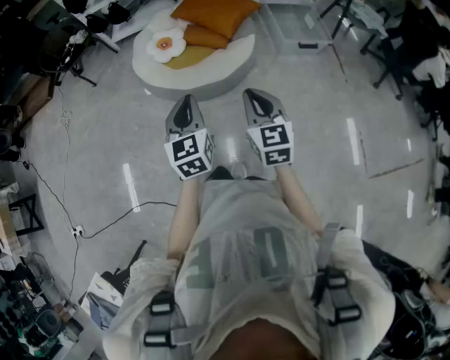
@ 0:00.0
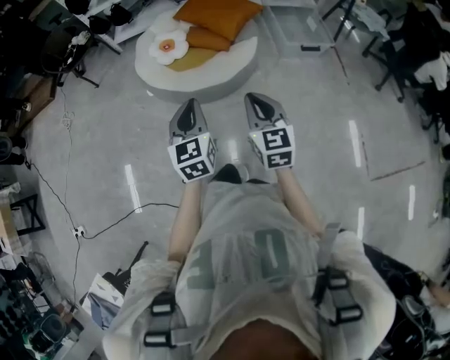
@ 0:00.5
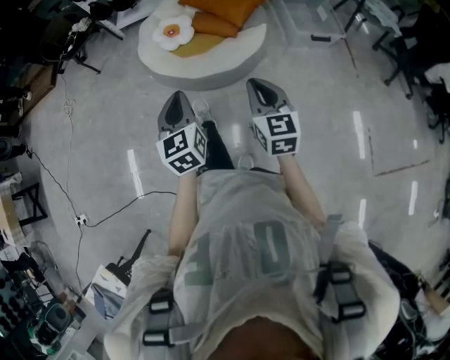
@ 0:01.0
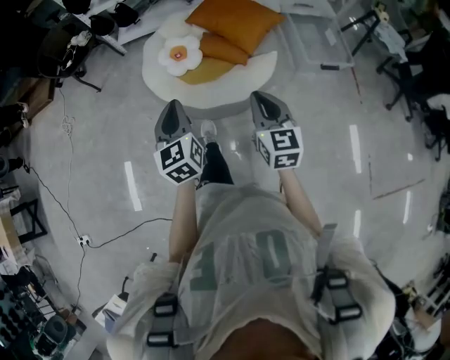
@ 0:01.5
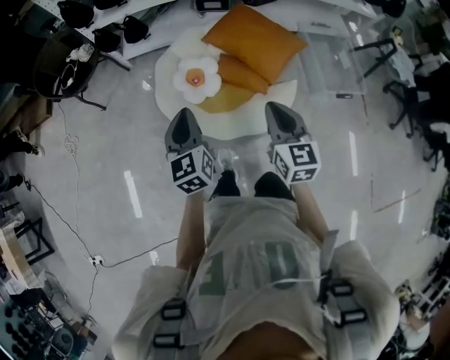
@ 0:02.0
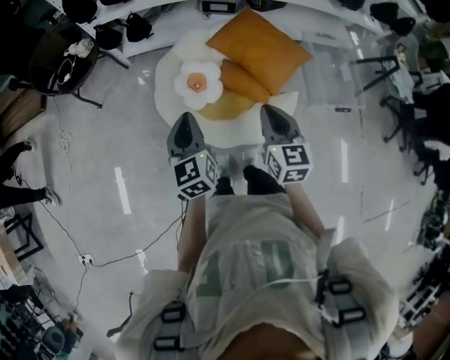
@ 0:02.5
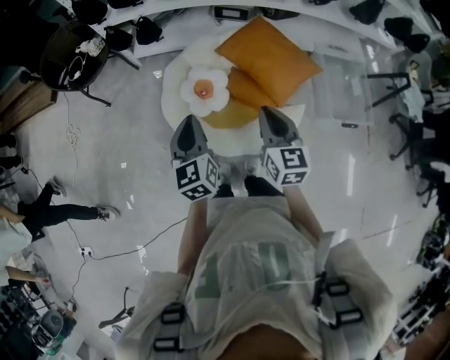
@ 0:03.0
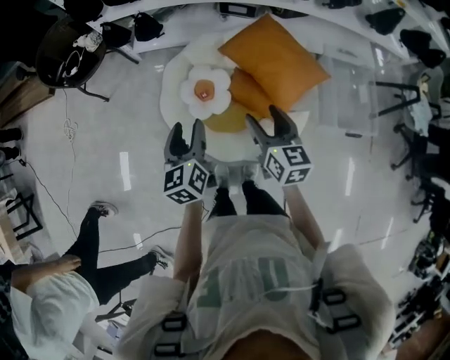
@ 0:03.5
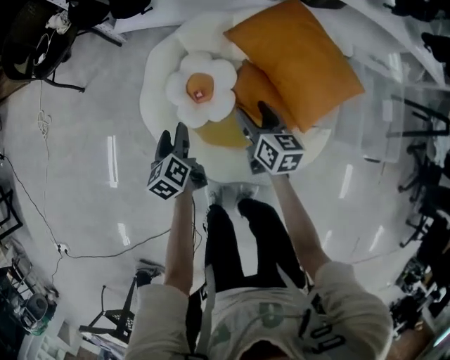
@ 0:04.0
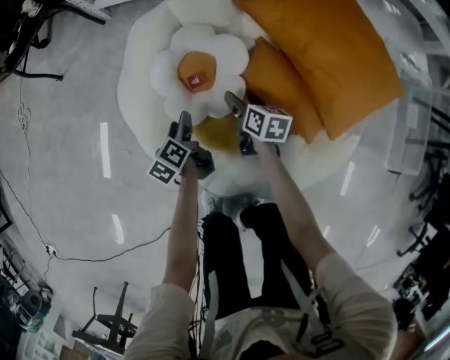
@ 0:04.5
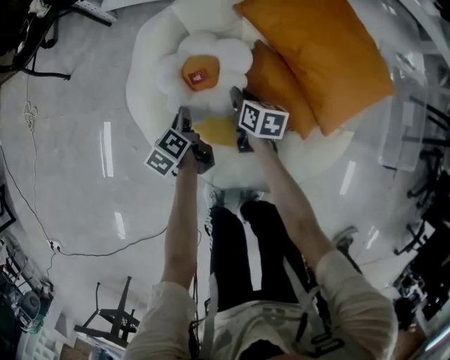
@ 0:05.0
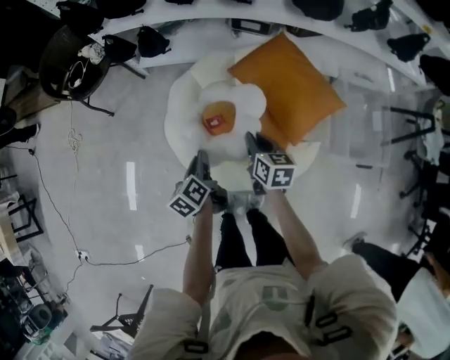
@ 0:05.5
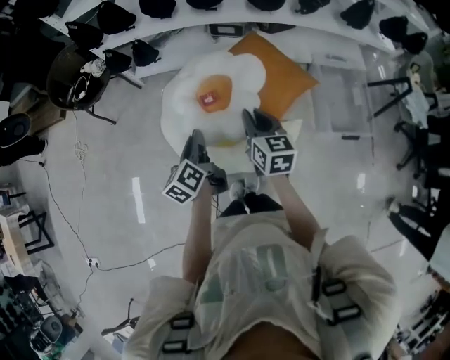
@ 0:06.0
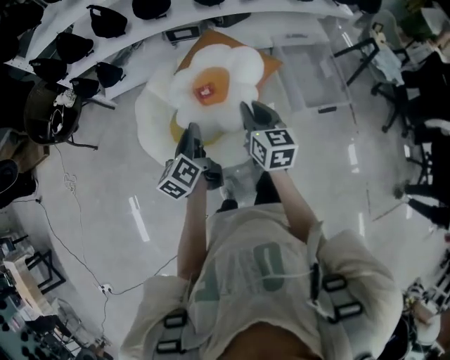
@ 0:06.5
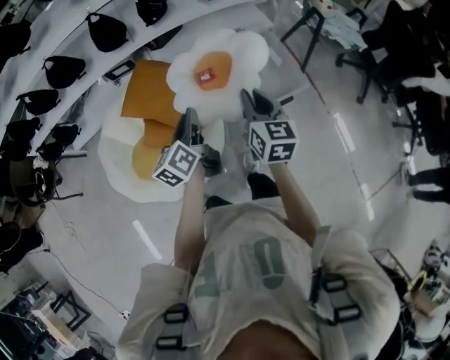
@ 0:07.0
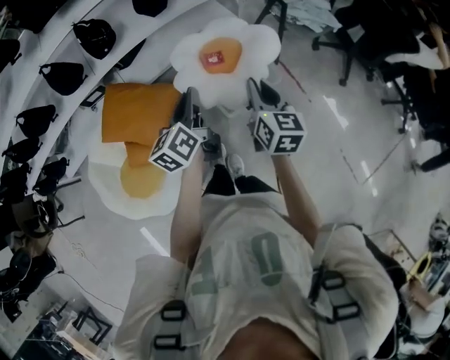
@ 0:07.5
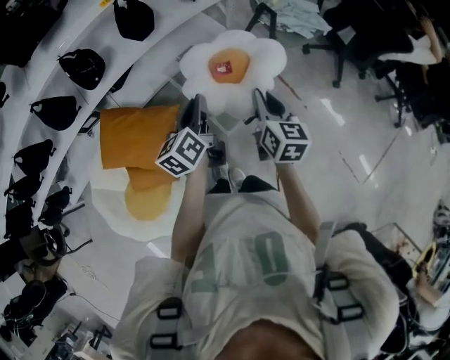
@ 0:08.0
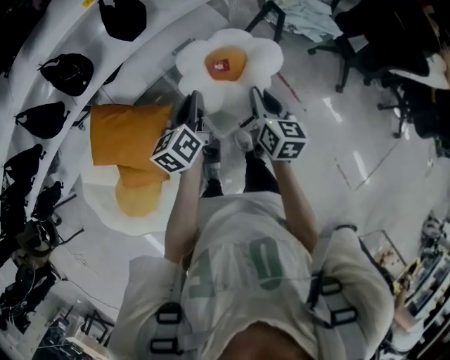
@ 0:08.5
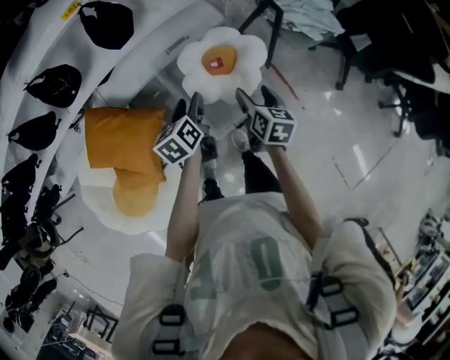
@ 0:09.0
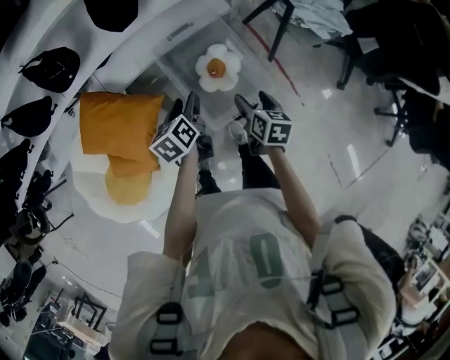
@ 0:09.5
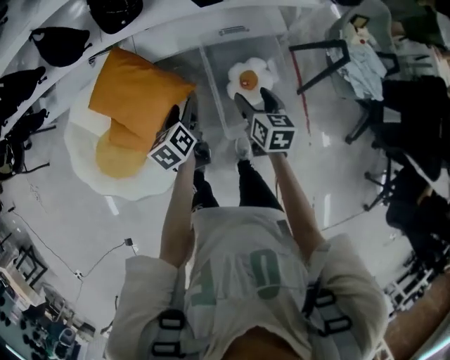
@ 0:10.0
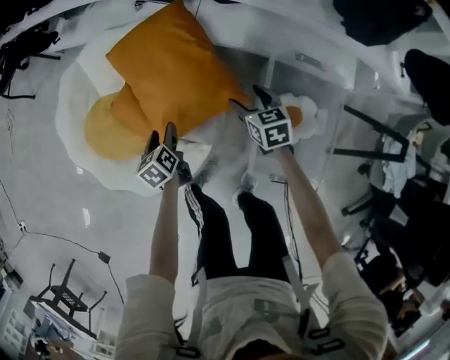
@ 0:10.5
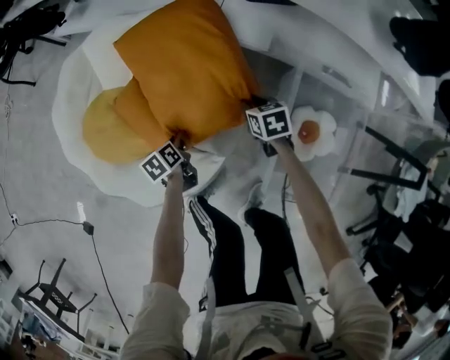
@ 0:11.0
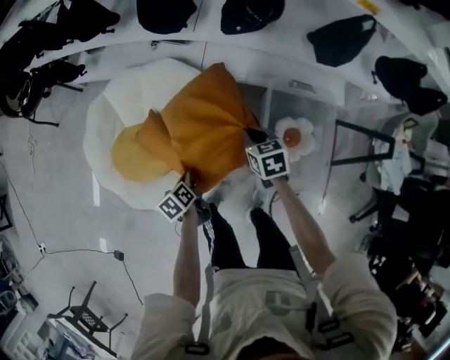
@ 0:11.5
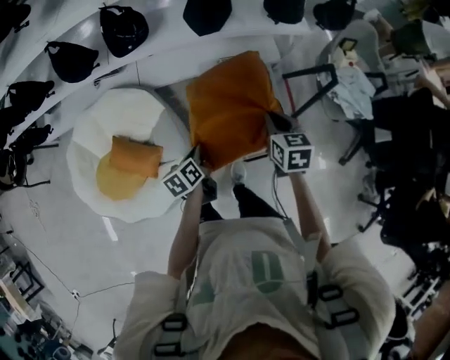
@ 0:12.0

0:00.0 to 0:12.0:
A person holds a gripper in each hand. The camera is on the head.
0:00.0 to 0:02.0: The two grippers travel together, forward, about 40 cm.
0:02.0 to 0:04.0: The grippers both shift downward and forward by about 50 cm. The right gripper swivels some 30 degrees, and opens. Meanwhile the left gripper changes its angle by some 40 degrees, and opens up.
0:04.0 to 0:06.0: The right gripper is displaced upward and backward by some 35 cm, and closes its fingers. Meanwhile the left gripper moves upward, roughly 35 cm, and closes.
0:06.0 to 0:08.0: The two grippers travel together, approximately 70 cm. The left gripper changes its angle by about 50 degrees; the right gripper changes its angle by some 50 degrees.
0:08.0 to 0:10.0: The right gripper shifts by approximately 25 cm, swivels roughly 40 degrees, and opens up. The left gripper is displaced downward by about 15 cm, rotates about 40 degrees, and opens its fingers.
0:10.0 to 0:12.0: The left gripper goes downward and returns, roughly 40 cm each way, and closes, while the right gripper moves some 35 cm downward and comes back, and closes up.

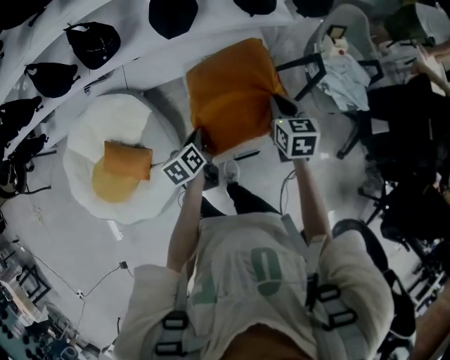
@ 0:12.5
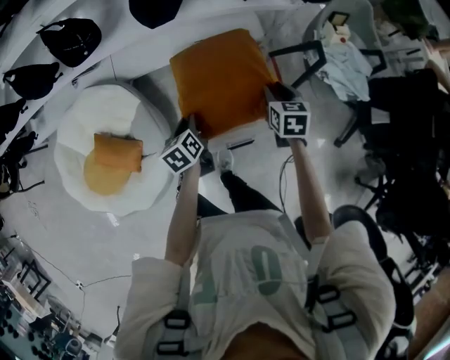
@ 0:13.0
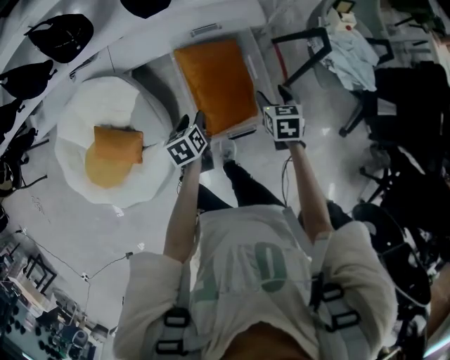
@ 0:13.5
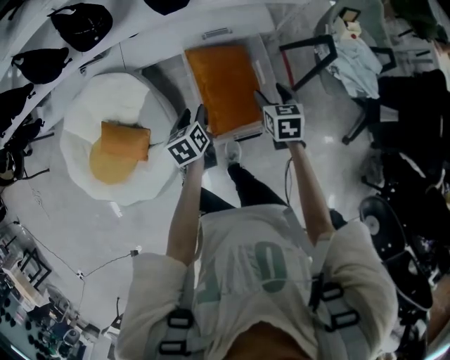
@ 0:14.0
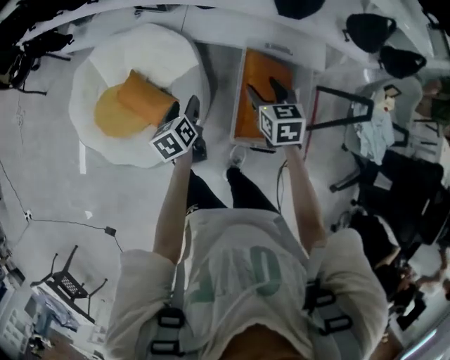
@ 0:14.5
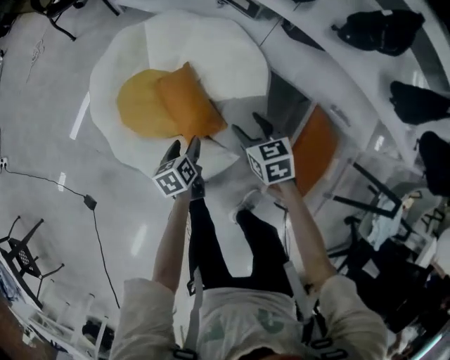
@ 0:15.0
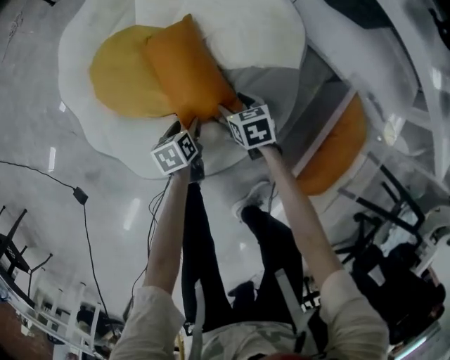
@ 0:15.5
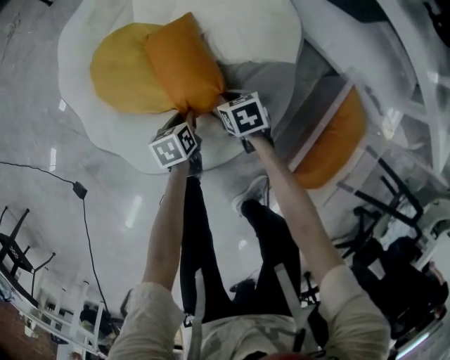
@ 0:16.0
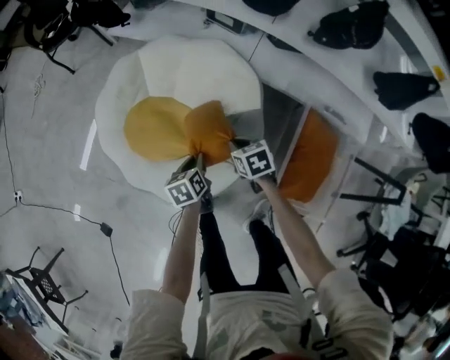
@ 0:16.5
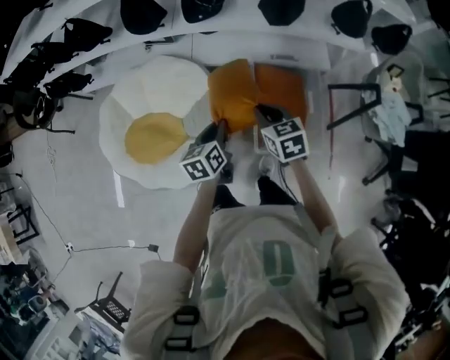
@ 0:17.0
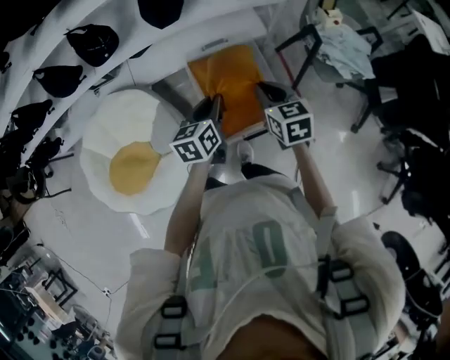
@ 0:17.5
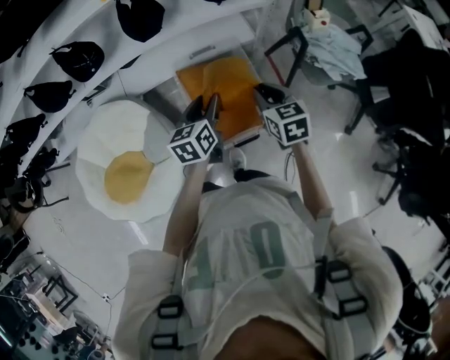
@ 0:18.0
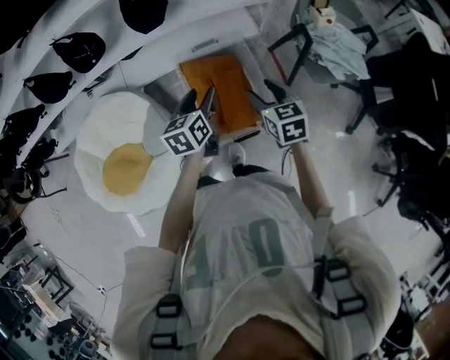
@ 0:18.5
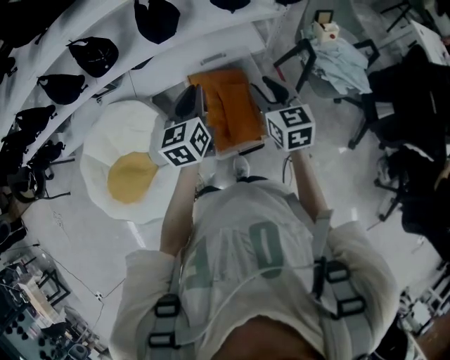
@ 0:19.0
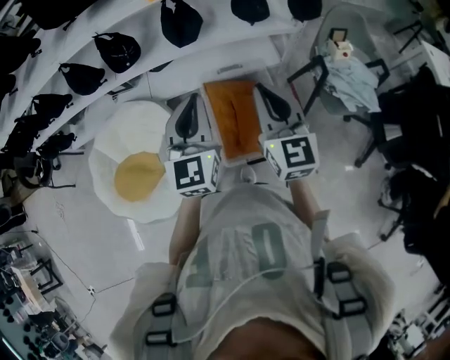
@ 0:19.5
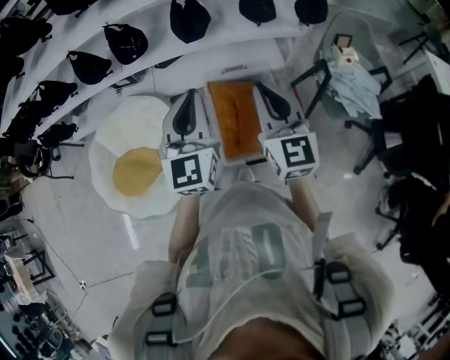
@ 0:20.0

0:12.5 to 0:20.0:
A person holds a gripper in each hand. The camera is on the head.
0:12.5 to 0:14.5: The right gripper ends up about 30 cm from where it was, swivels some 30 degrees, and opens up. Meanwhile the left gripper reaches roughly 10 cm downward, then returns, rotates some 30 degrees, and opens its fingers.
0:14.5 to 0:16.5: The right gripper turns by about 30 degrees, and closes its fingers, while the left gripper closes.
0:16.5 to 0:18.0: The pair of grippers is taken roughly 60 cm. The right gripper swivels roughly 50 degrees; the left gripper rotates approximately 60 degrees.
0:18.0 to 0:20.0: The left gripper goes about 20 cm upward, rotates some 50 degrees, and closes its fingers; the right gripper is displaced upward and to the left by roughly 25 cm, points its fingers about 40 degrees further upward, and opens and closes again.

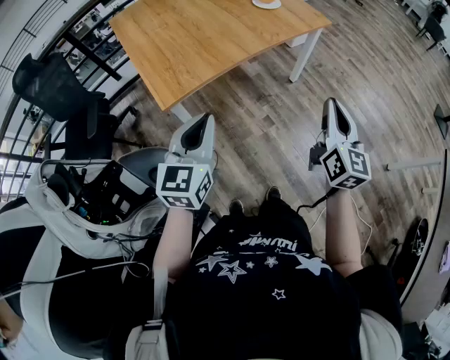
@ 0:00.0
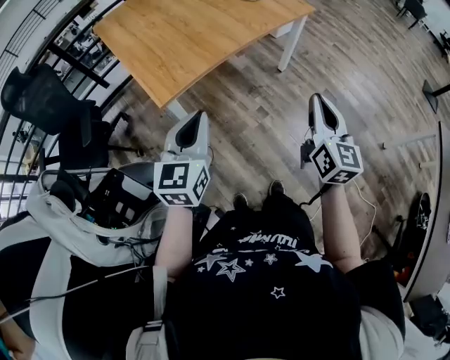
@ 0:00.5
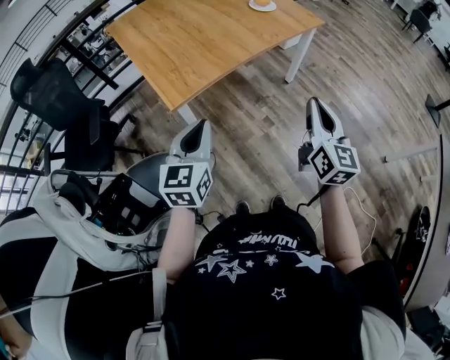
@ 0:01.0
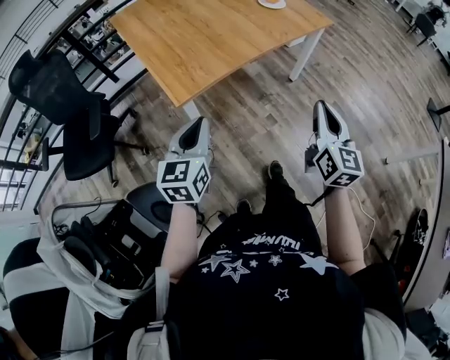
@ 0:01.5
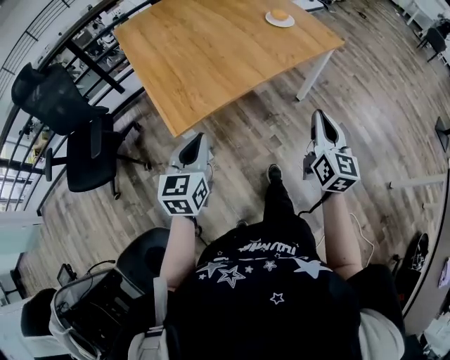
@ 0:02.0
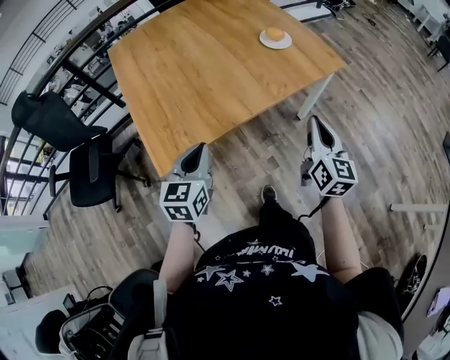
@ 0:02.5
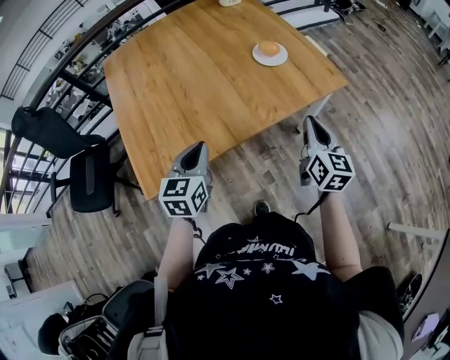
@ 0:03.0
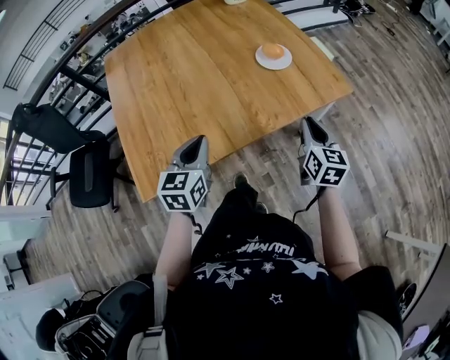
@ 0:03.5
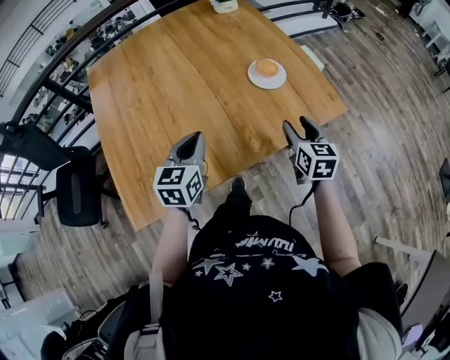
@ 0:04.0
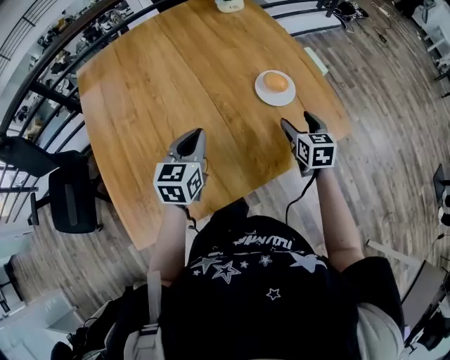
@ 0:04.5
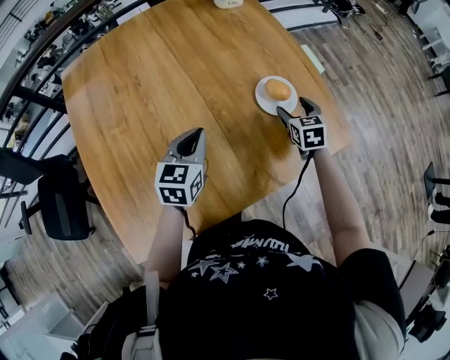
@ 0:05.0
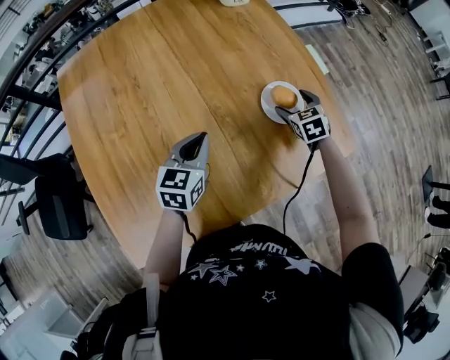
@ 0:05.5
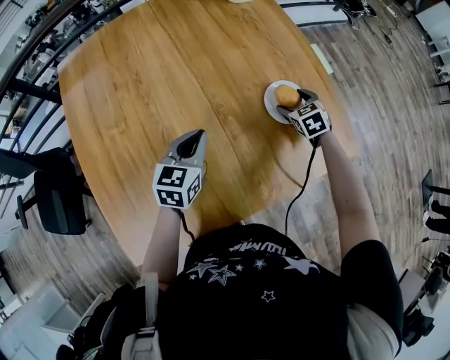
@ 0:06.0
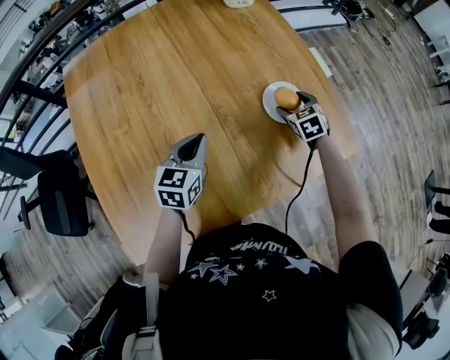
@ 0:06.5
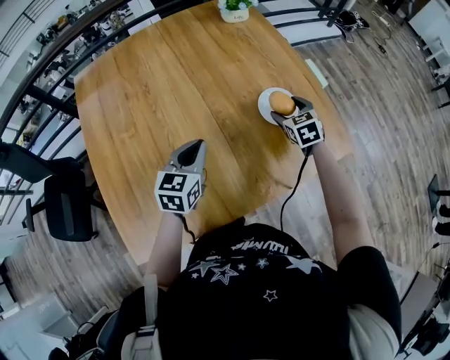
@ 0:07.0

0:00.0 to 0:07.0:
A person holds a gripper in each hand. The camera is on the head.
0:00.0 to 0:02.0: The left gripper travels to the left, downward and forward by approximately 15 cm. The right gripper goes some 15 cm forward, to the left and downward.
0:02.0 to 0:03.5: The left gripper goes roughly 35 cm forward and to the right. The right gripper travels forward by roughly 35 cm.
0:03.5 to 0:05.0: The grippers both shift forward by some 30 cm. The right gripper turns by about 30 degrees, and opens its fingers.
